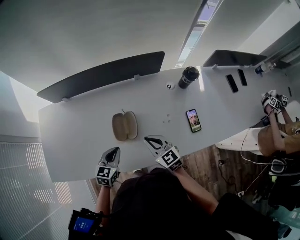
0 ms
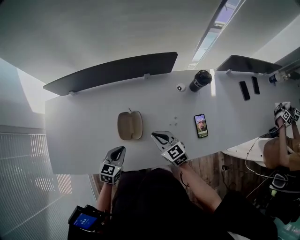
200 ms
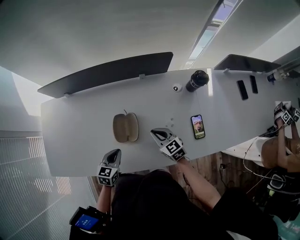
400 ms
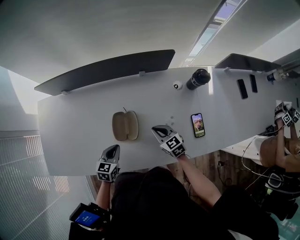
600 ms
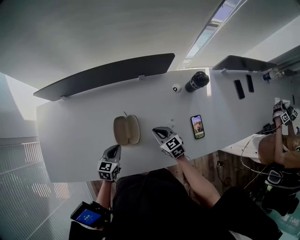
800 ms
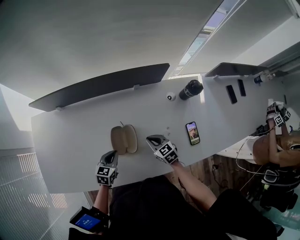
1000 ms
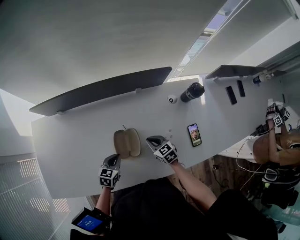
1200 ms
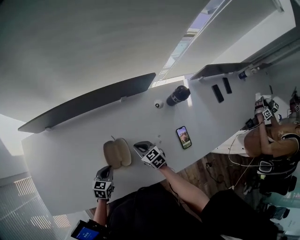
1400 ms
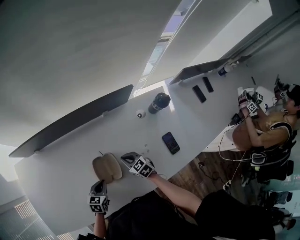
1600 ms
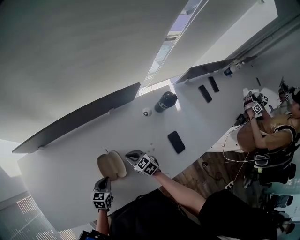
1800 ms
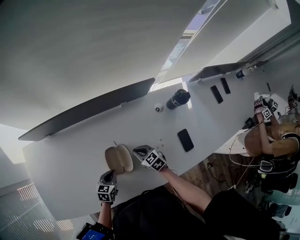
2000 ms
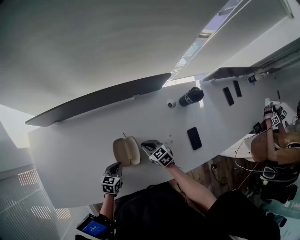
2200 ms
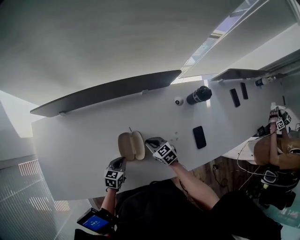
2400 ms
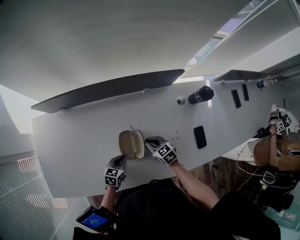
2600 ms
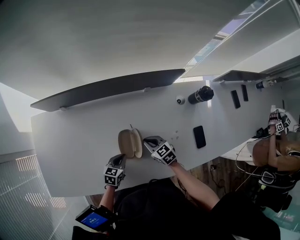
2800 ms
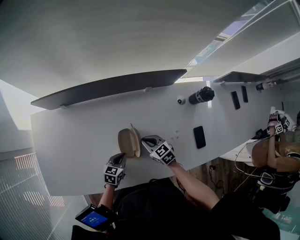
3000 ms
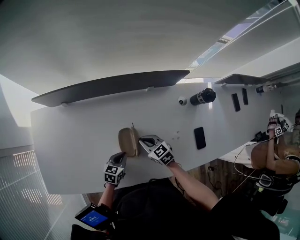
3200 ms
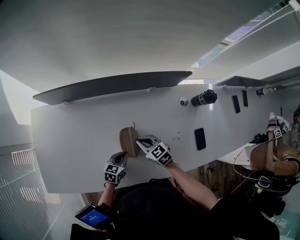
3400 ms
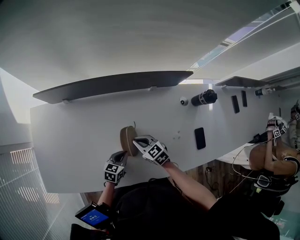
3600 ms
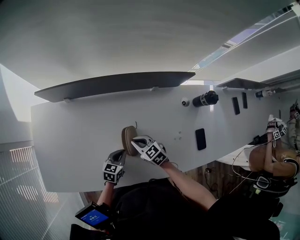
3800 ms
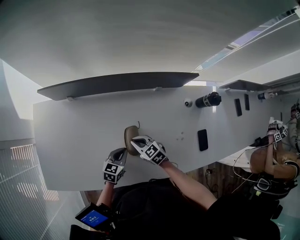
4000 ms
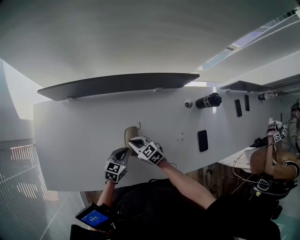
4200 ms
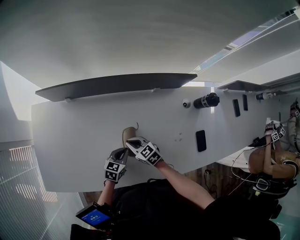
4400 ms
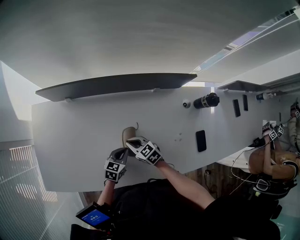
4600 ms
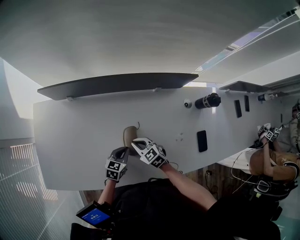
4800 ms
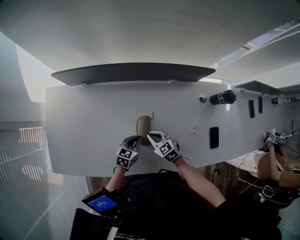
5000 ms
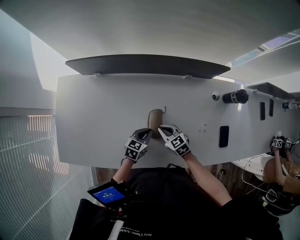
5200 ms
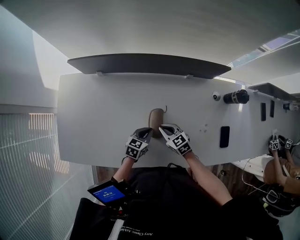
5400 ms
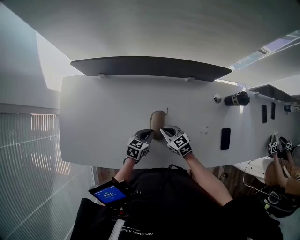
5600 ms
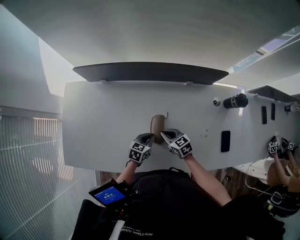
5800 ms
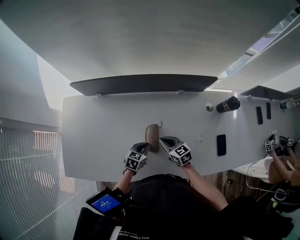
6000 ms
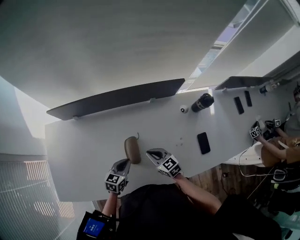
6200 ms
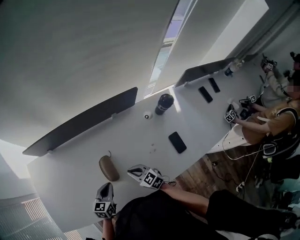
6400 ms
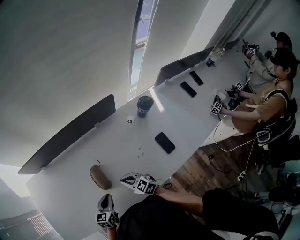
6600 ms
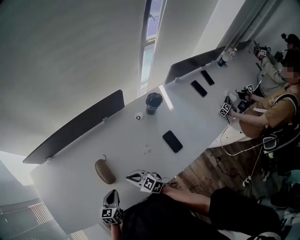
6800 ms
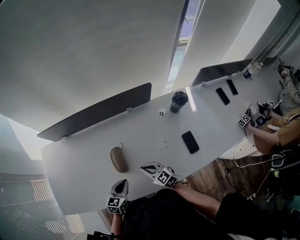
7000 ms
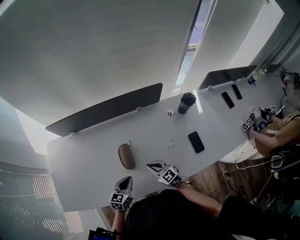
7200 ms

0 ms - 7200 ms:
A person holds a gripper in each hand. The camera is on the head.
0 ms - 1400 ms: The two grippers go approximately 15 cm downward and forward. The right gripper changes its angle by some 20 degrees.
1400 ms - 2800 ms: The right gripper moves to the left, approximately 5 cm.
2800 ms - 4400 ms: The right gripper is displaced to the left by roughly 15 cm.
4400 ms - 5800 ms: The grippers move only a little.
5800 ms - 7200 ms: The left gripper travels backward and upward by about 15 cm, while the right gripper shifts about 15 cm backward, to the right and upward.

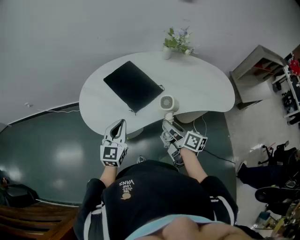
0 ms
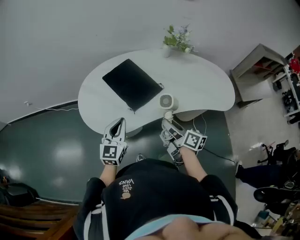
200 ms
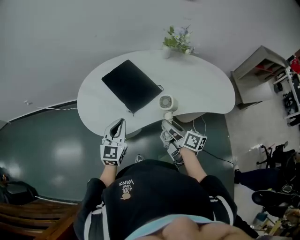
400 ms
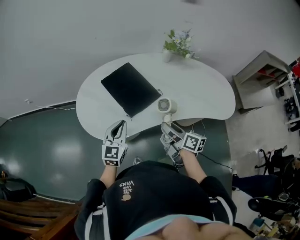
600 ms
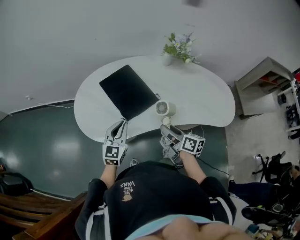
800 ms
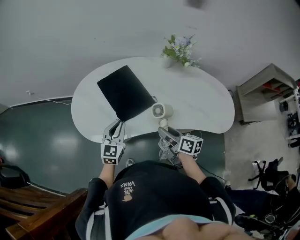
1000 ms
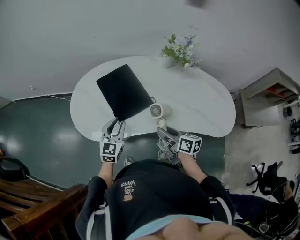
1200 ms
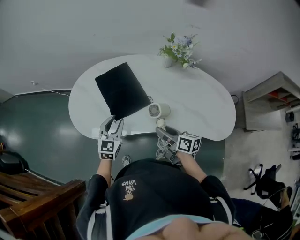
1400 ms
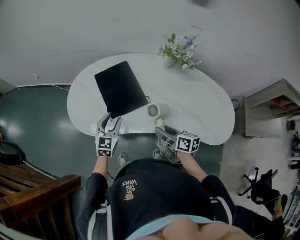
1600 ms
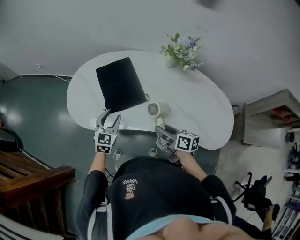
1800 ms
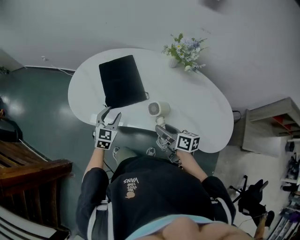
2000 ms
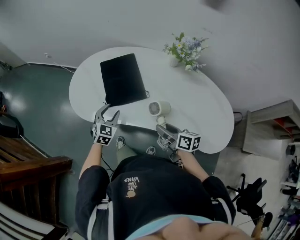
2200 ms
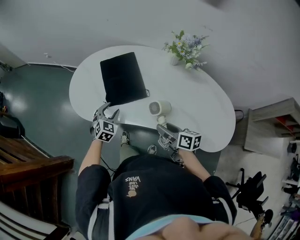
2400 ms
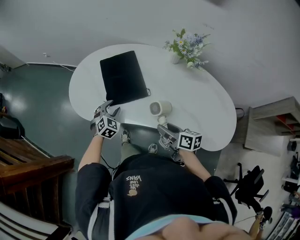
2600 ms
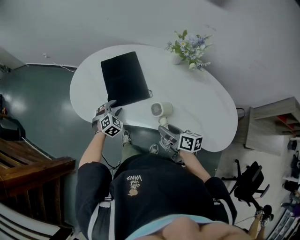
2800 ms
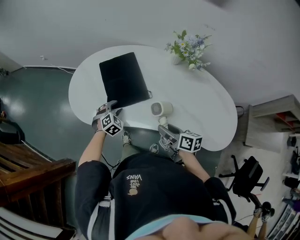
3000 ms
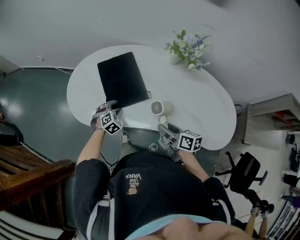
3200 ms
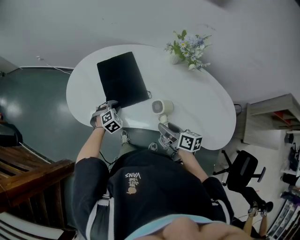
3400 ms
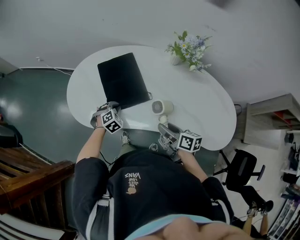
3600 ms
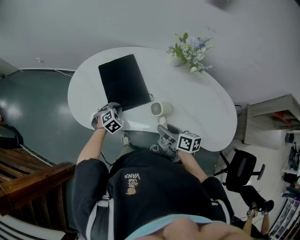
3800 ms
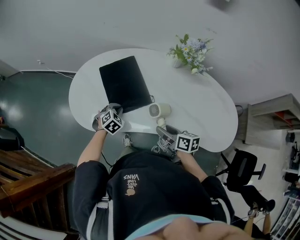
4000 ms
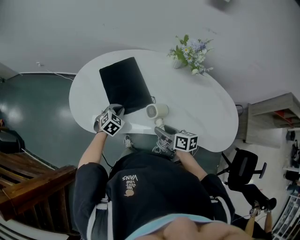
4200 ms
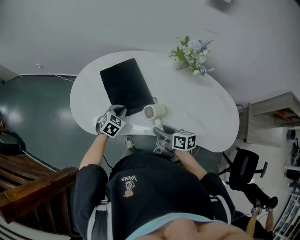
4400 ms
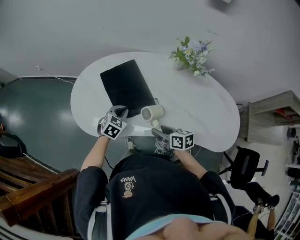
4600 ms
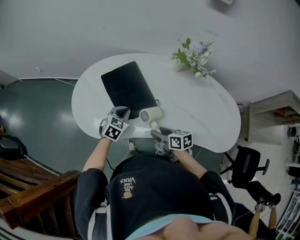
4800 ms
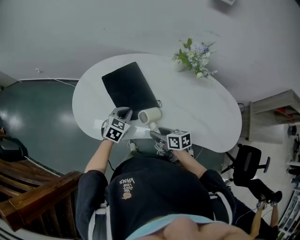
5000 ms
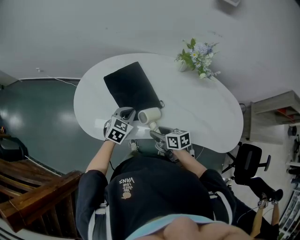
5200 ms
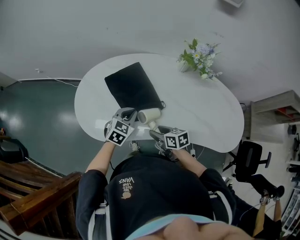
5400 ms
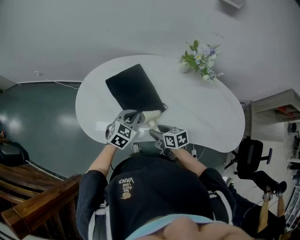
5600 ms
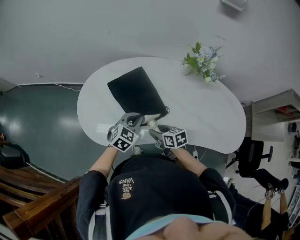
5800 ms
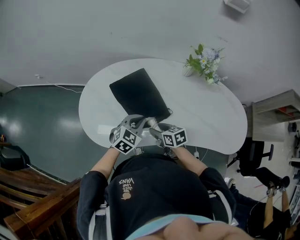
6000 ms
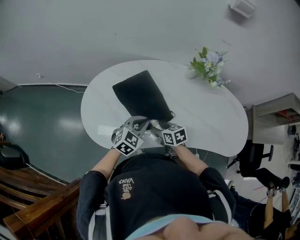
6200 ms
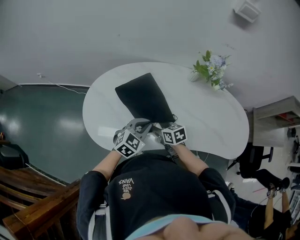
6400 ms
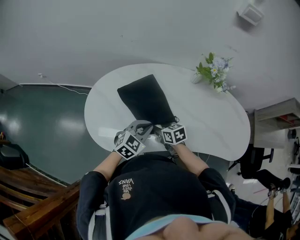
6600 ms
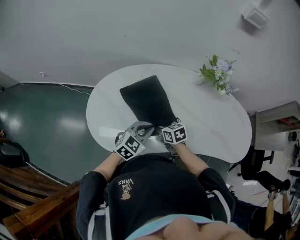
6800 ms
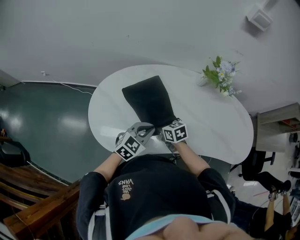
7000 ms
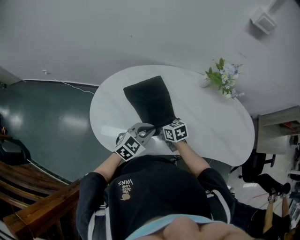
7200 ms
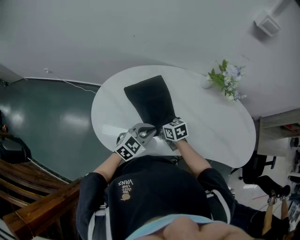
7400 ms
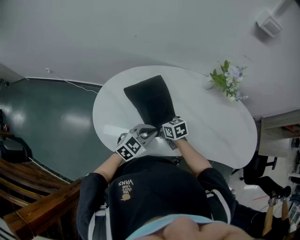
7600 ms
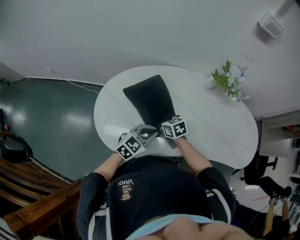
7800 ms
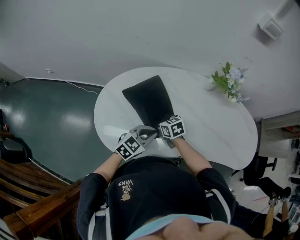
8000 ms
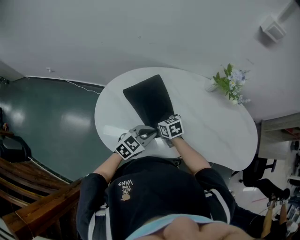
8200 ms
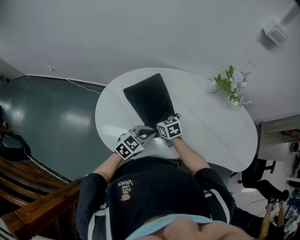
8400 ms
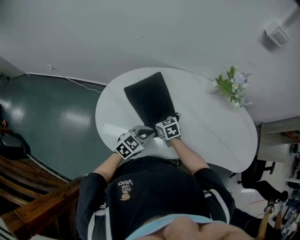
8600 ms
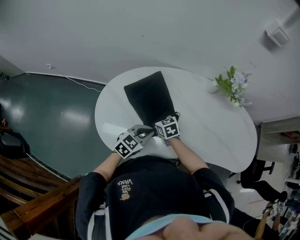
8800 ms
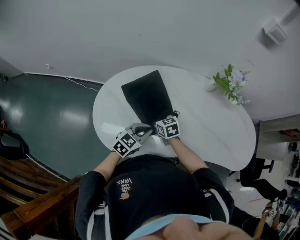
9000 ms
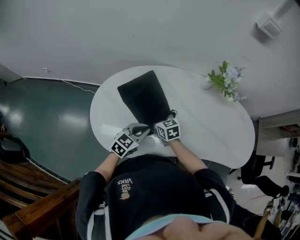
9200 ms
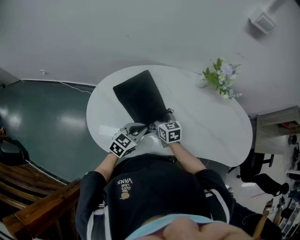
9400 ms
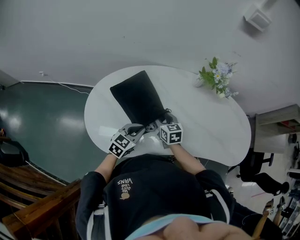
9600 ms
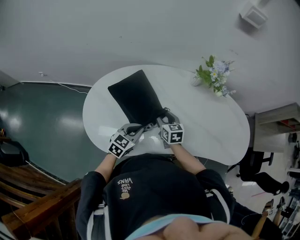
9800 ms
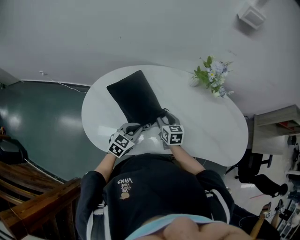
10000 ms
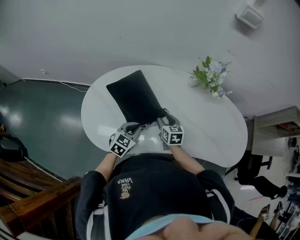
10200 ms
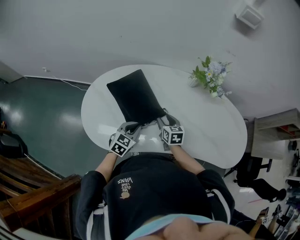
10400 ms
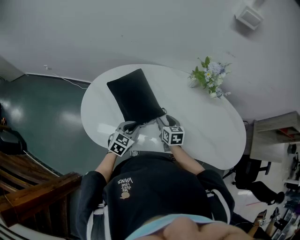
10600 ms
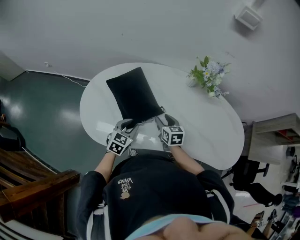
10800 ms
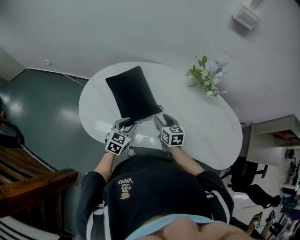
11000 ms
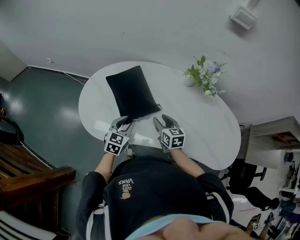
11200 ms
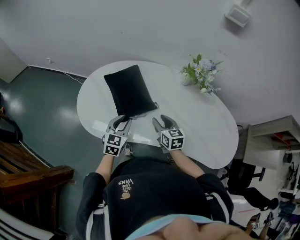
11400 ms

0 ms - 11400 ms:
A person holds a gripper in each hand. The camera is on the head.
0 ms - 1400 ms: The right gripper shifts approximately 15 cm to the right and forward, and changes its angle by some 30 degrees. The left gripper shifts roughly 15 cm to the right, forward and downward, and opens.
1400 ms - 2800 ms: The left gripper moves downward, approximately 10 cm, and turns by about 40 degrees, while the right gripper travels to the right by roughly 5 cm.
2800 ms - 4200 ms: The left gripper closes up. The right gripper changes place by approximately 5 cm.
4200 ms - 5600 ms: The right gripper is displaced to the left and forward by approximately 10 cm, while the left gripper moves upward, about 5 cm.
5600 ms - 7200 ms: The right gripper moves forward and to the left, about 15 cm.
7200 ms - 8600 ms: The right gripper heads to the left, covering roughly 5 cm, while the left gripper changes place by roughly 5 cm.
8600 ms - 10000 ms: The right gripper heads to the right, covering some 15 cm, and swivels approximately 20 degrees.
10000 ms - 11400 ms: The left gripper shifts by some 5 cm, rotates about 30 degrees, and opens; the right gripper shifts roughly 10 cm backward, to the right and upward.

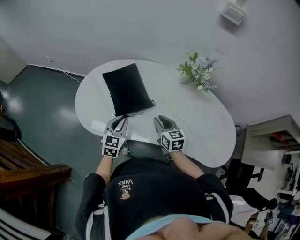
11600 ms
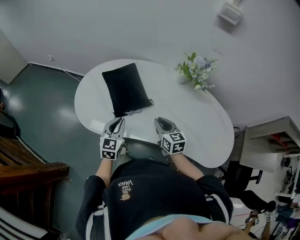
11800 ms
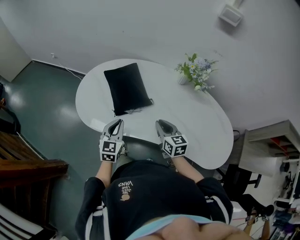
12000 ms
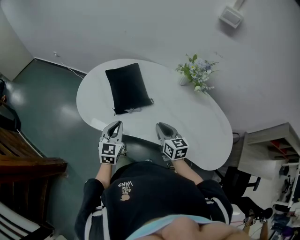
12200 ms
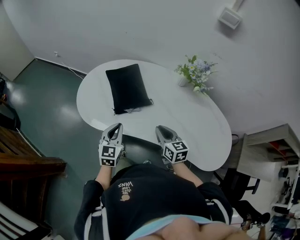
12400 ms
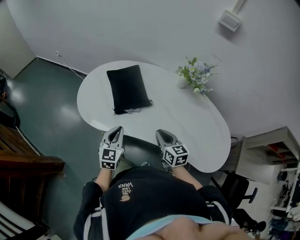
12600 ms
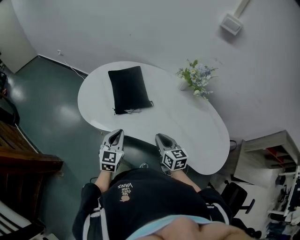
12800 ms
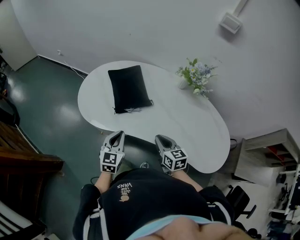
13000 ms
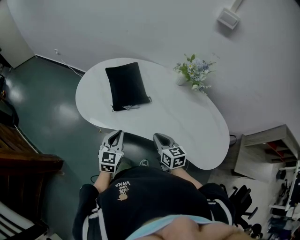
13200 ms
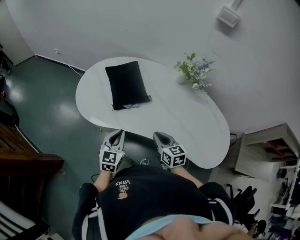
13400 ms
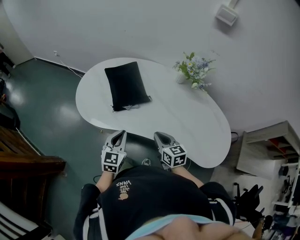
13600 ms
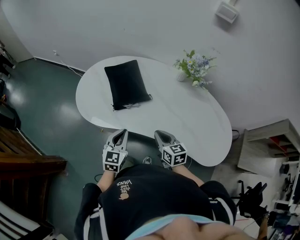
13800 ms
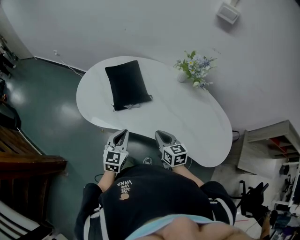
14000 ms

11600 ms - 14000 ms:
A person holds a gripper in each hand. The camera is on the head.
11600 ms - 12800 ms: The grippers both shift backward by some 10 cm.
12800 ms - 14000 ms: The grippers stay close to where they were, moving slightly.

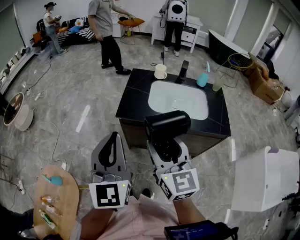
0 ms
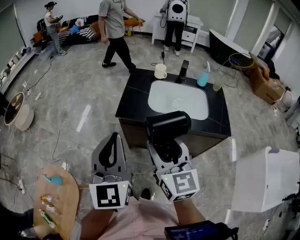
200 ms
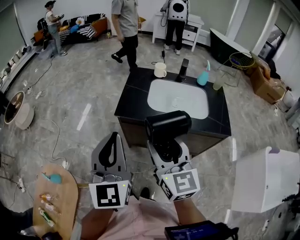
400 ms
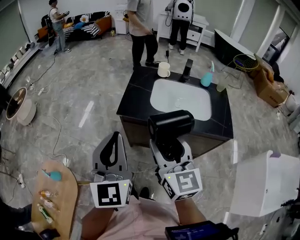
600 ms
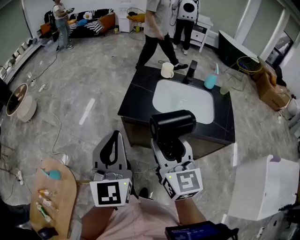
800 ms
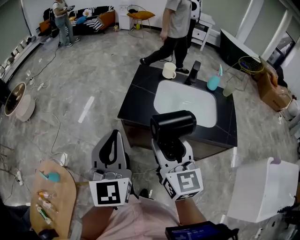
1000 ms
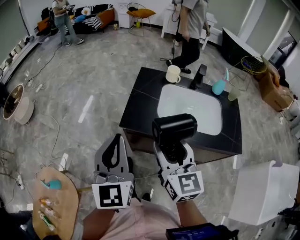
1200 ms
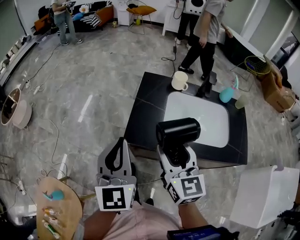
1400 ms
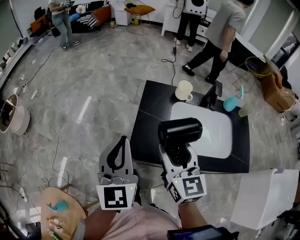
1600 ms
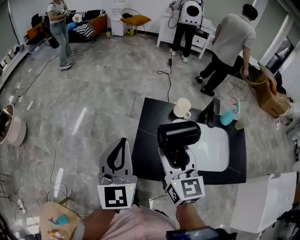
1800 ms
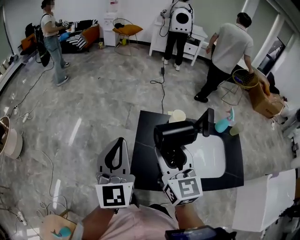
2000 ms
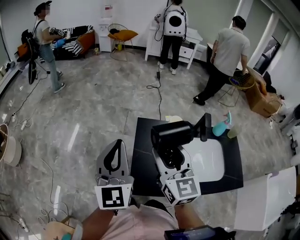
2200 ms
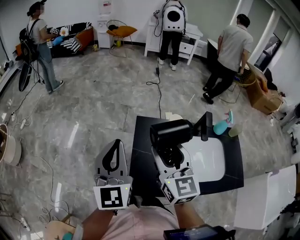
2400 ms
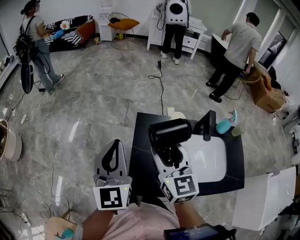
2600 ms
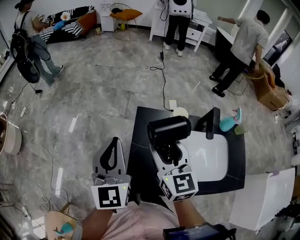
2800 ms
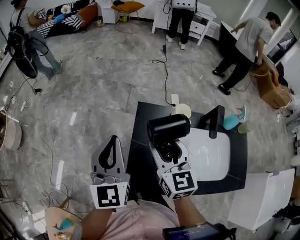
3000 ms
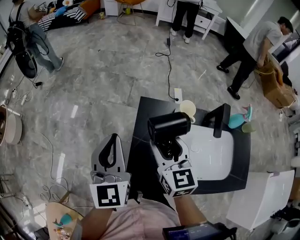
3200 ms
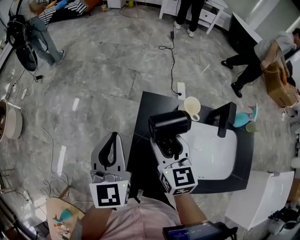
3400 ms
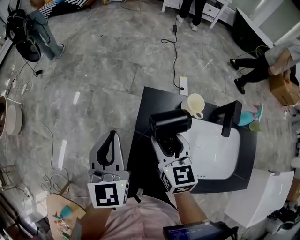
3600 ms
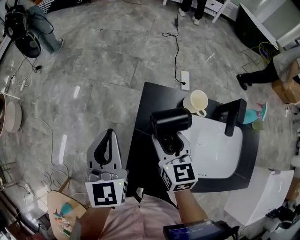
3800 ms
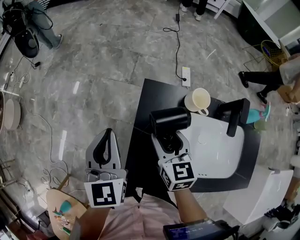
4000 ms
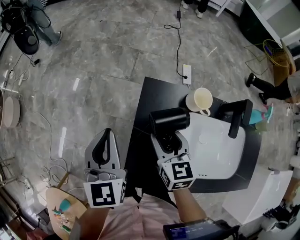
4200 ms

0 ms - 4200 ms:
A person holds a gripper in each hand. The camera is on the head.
0 ms - 1400 ms: Both grippers move forward, approximately 20 cm.
1400 ms - 2800 ms: The two grippers go approximately 25 cm forward.
2800 ms - 4200 ms: The left gripper shifts about 10 cm downward; the right gripper heads downward, covering roughly 20 cm, and turns by roughly 20 degrees.
